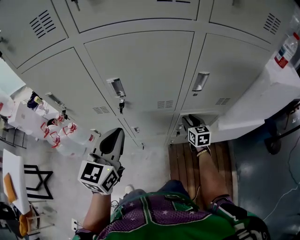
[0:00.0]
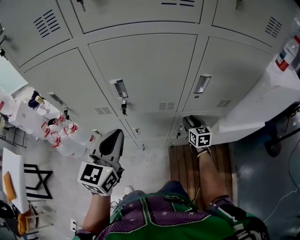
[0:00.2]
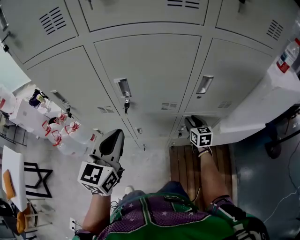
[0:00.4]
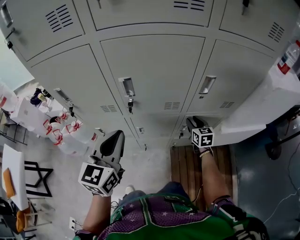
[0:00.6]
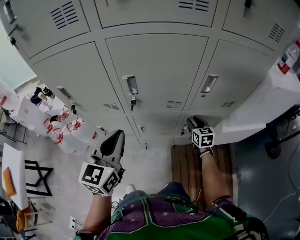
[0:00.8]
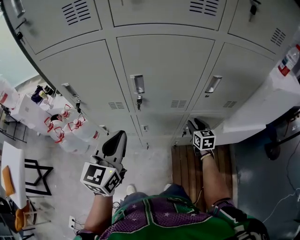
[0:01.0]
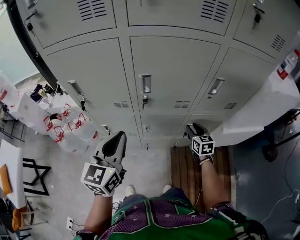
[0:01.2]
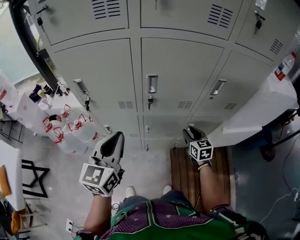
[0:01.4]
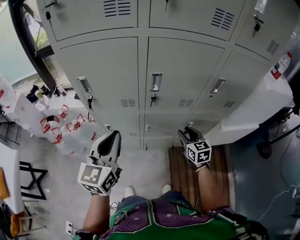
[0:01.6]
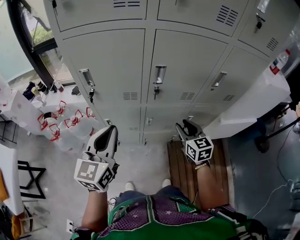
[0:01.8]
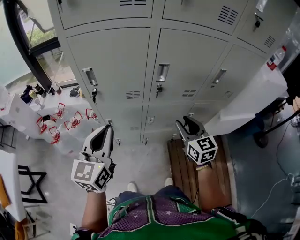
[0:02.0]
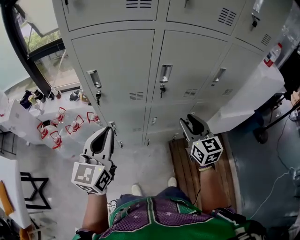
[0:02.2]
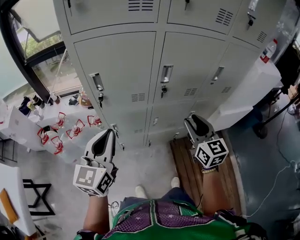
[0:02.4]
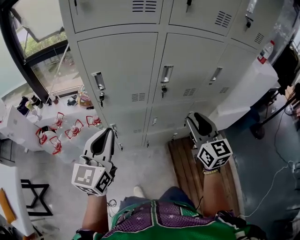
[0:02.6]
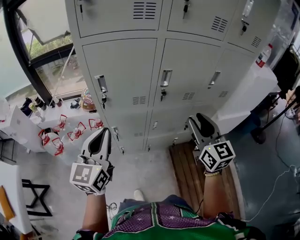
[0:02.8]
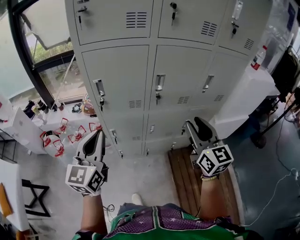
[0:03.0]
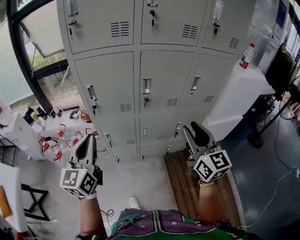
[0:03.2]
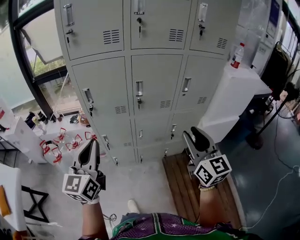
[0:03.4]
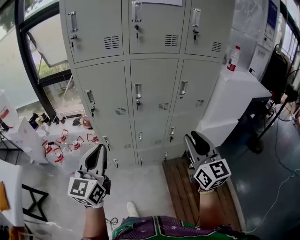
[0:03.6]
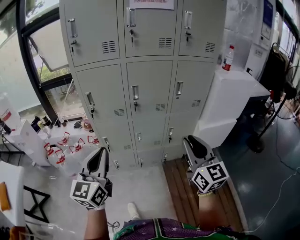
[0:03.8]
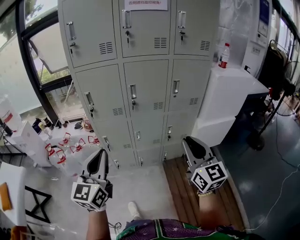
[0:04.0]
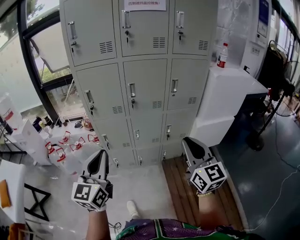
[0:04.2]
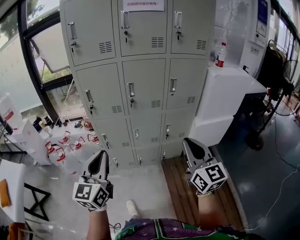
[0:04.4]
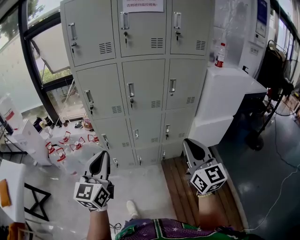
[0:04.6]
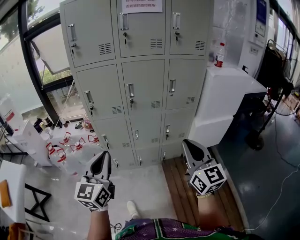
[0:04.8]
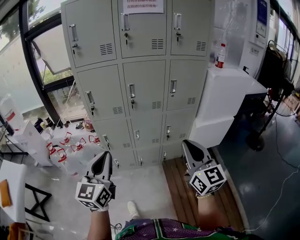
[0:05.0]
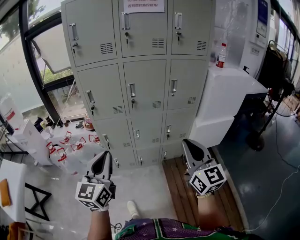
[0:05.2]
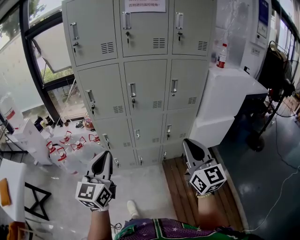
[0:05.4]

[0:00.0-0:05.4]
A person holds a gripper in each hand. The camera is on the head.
0:00.0 to 0:01.4: The grippers both shift to the left and backward by roughly 15 cm.
0:01.4 to 0:02.8: The left gripper moves to the left, about 15 cm, while the right gripper heads upward, to the left and backward, covering approximately 30 cm, and turns by approximately 30 degrees.
0:02.8 to 0:04.0: Both grippers move backward and to the right, roughly 25 cm.
0:04.0 to 0:05.4: The grippers make only small movements.

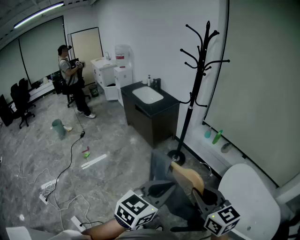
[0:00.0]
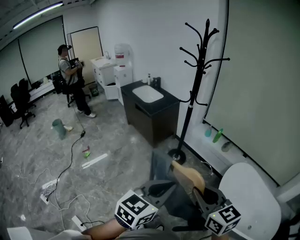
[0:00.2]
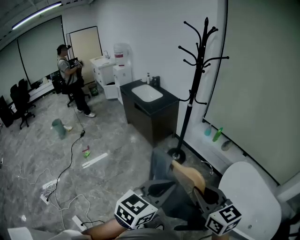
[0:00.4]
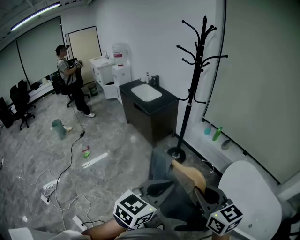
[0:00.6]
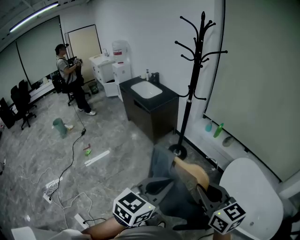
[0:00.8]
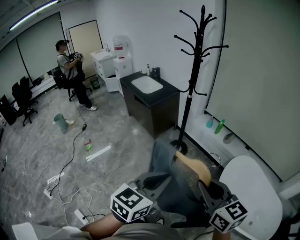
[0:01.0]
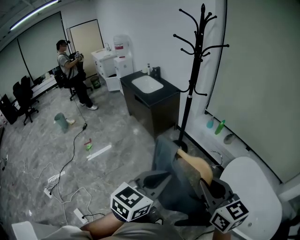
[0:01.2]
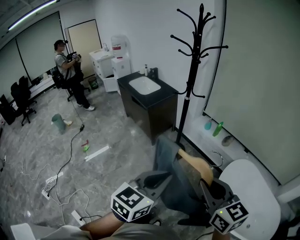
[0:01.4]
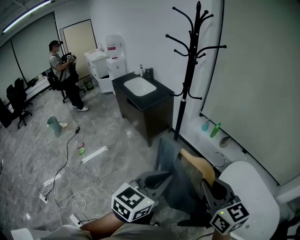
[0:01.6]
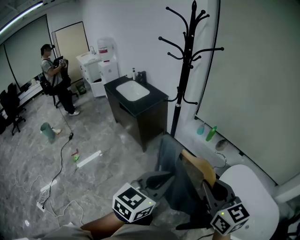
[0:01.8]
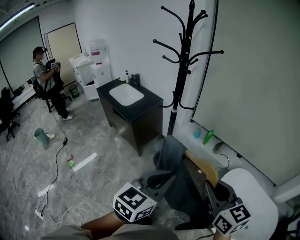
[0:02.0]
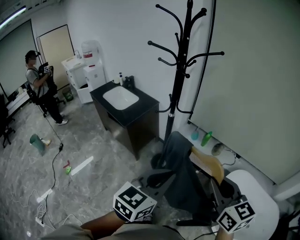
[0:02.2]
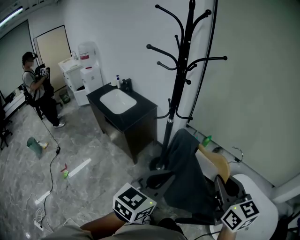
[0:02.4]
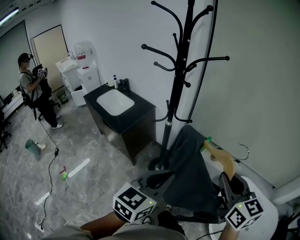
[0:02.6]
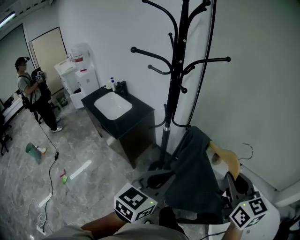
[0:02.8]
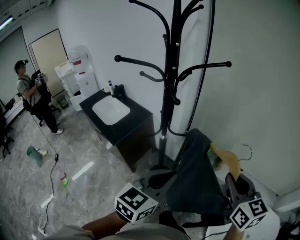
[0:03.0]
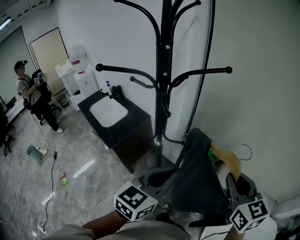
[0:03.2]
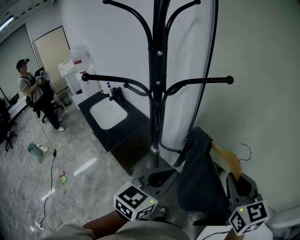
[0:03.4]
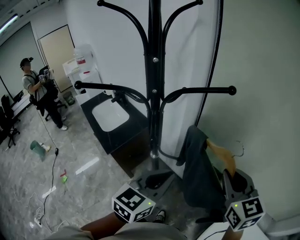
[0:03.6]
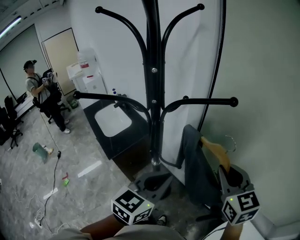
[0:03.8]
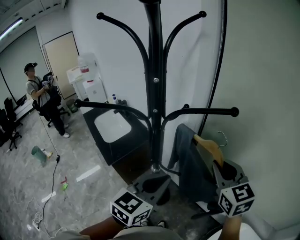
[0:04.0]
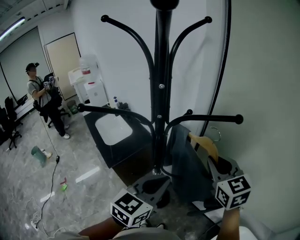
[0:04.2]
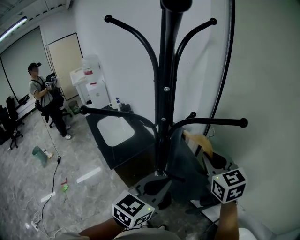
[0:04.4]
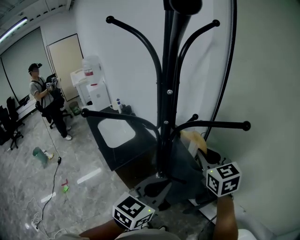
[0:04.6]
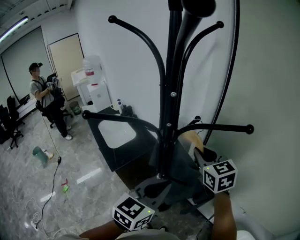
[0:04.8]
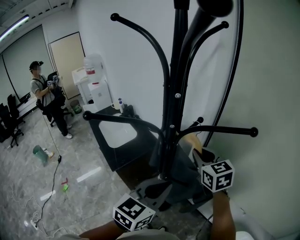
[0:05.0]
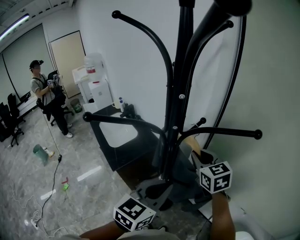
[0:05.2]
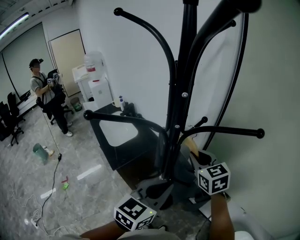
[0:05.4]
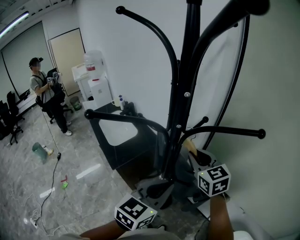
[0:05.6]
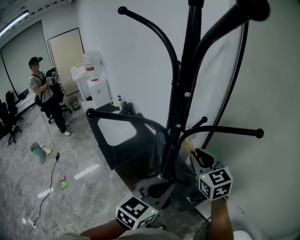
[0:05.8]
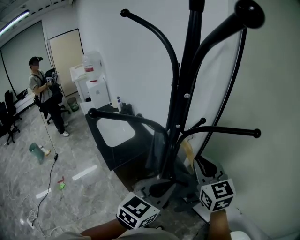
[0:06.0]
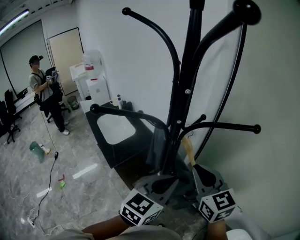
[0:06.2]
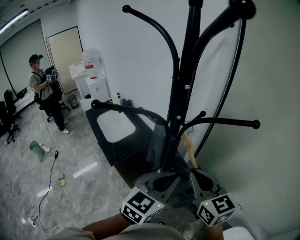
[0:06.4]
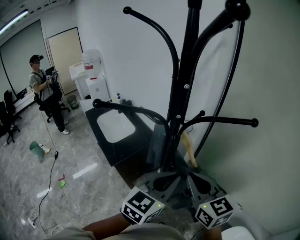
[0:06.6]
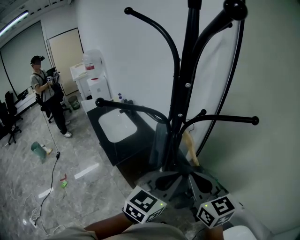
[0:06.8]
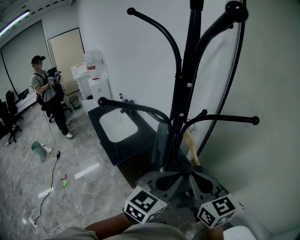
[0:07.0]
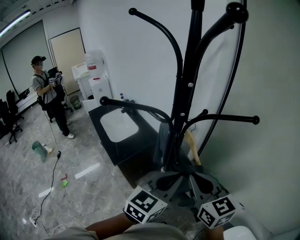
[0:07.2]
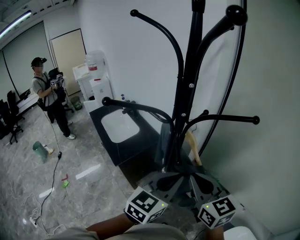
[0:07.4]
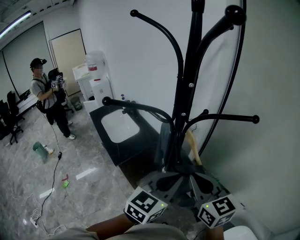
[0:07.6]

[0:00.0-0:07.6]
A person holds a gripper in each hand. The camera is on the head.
0:00.0 to 0:01.6: The grippers both shift forward and to the right by some 15 cm.
0:01.6 to 0:03.0: The two grippers travel together, forward, about 40 cm. The right gripper turns by about 20 degrees.
0:03.0 to 0:04.6: The left gripper heads forward, covering roughly 20 cm. Meanwhile the right gripper moves forward, roughly 35 cm, and changes its angle by about 20 degrees.
0:06.0 to 0:07.6: The right gripper heads backward, covering roughly 10 cm.

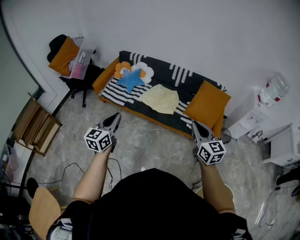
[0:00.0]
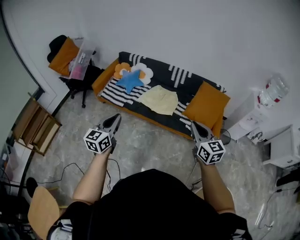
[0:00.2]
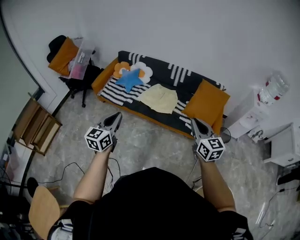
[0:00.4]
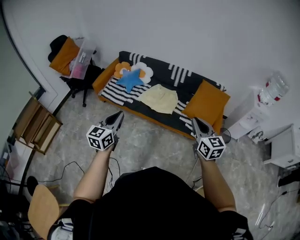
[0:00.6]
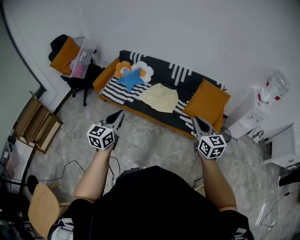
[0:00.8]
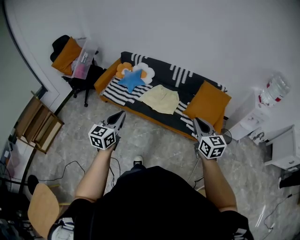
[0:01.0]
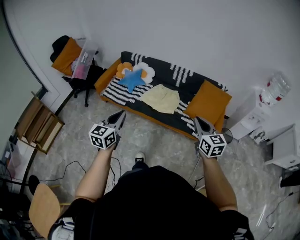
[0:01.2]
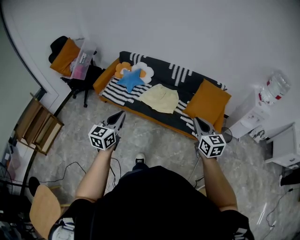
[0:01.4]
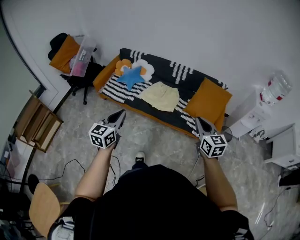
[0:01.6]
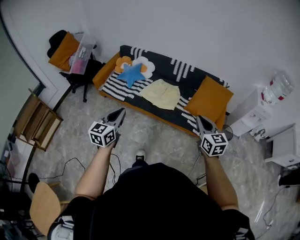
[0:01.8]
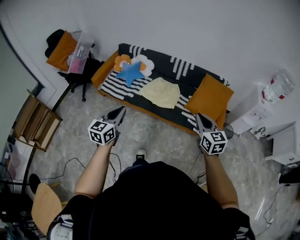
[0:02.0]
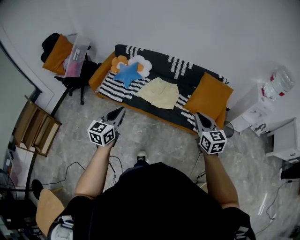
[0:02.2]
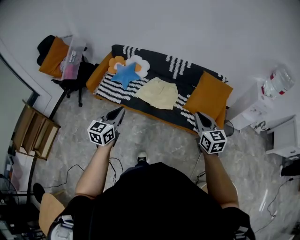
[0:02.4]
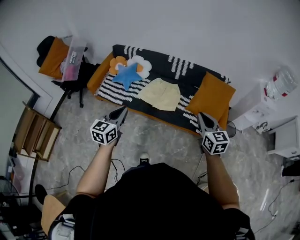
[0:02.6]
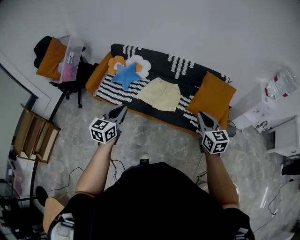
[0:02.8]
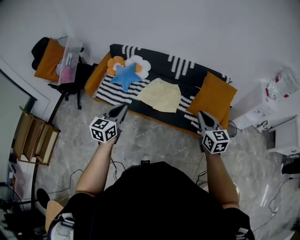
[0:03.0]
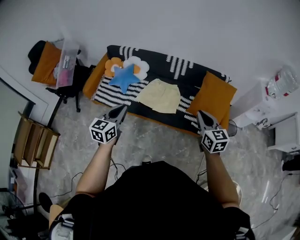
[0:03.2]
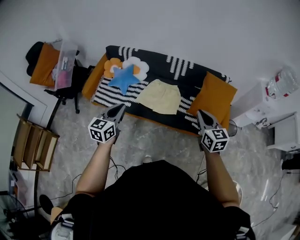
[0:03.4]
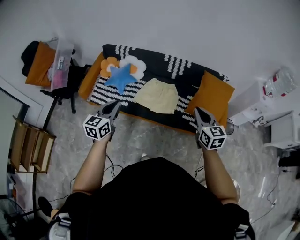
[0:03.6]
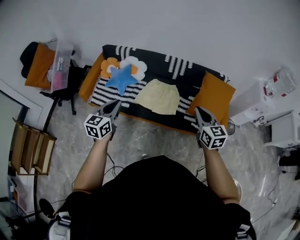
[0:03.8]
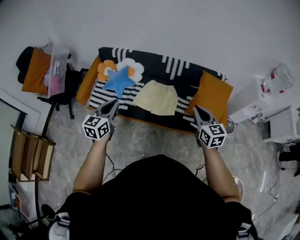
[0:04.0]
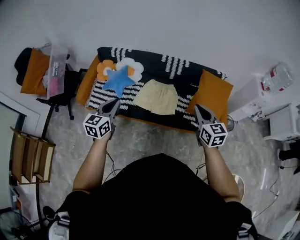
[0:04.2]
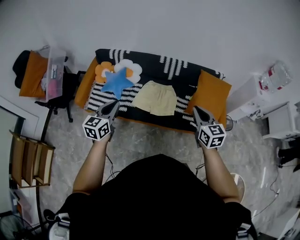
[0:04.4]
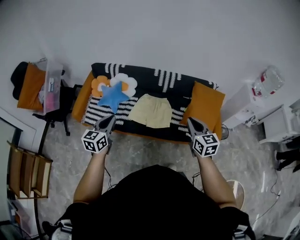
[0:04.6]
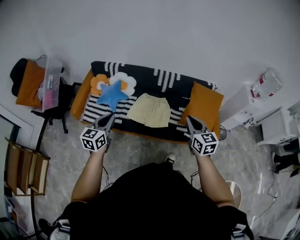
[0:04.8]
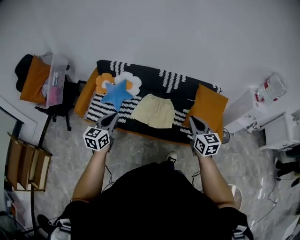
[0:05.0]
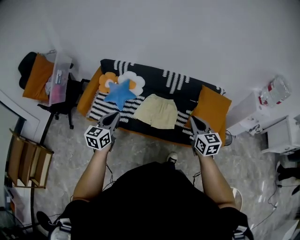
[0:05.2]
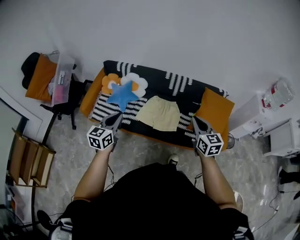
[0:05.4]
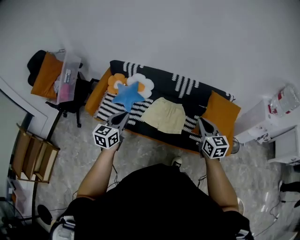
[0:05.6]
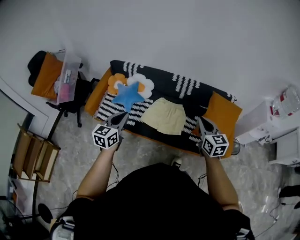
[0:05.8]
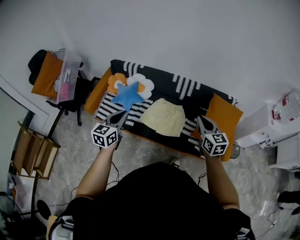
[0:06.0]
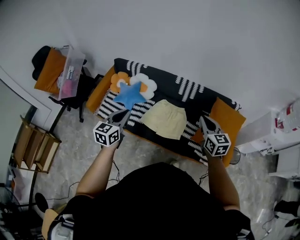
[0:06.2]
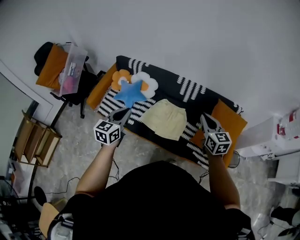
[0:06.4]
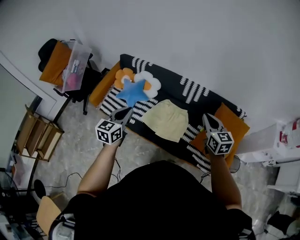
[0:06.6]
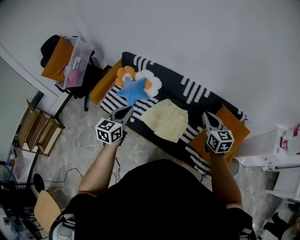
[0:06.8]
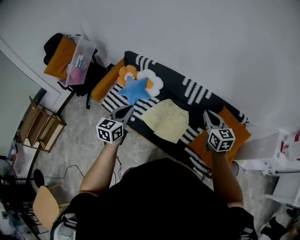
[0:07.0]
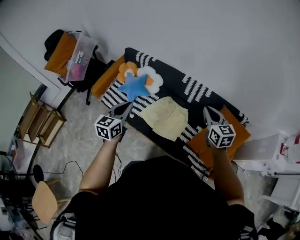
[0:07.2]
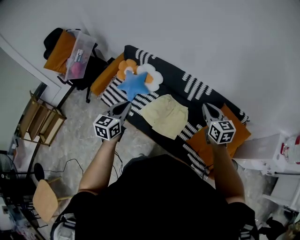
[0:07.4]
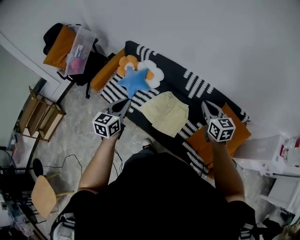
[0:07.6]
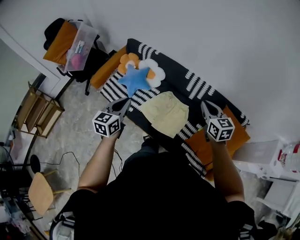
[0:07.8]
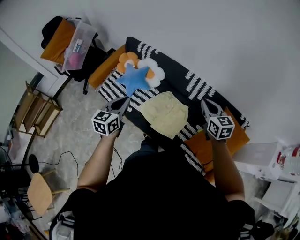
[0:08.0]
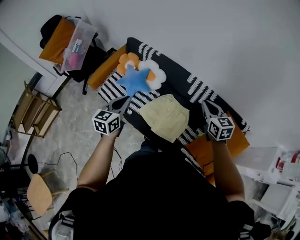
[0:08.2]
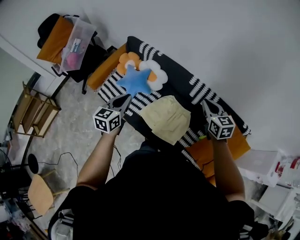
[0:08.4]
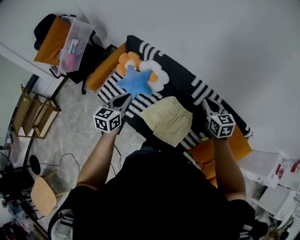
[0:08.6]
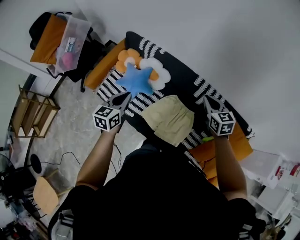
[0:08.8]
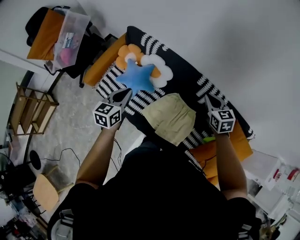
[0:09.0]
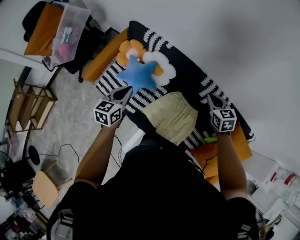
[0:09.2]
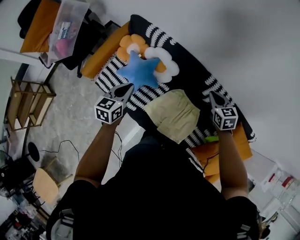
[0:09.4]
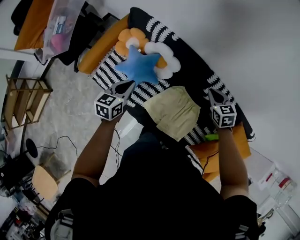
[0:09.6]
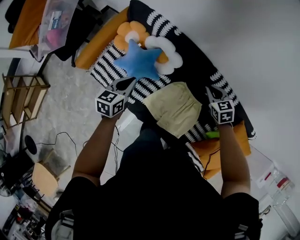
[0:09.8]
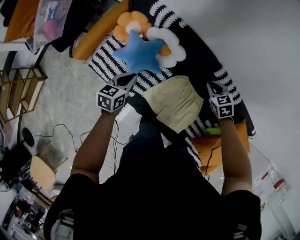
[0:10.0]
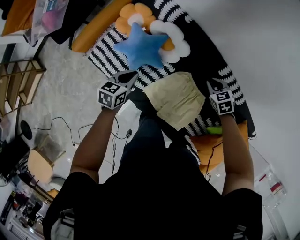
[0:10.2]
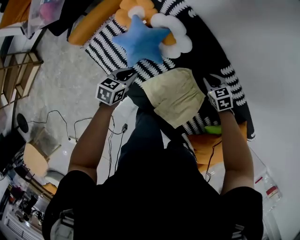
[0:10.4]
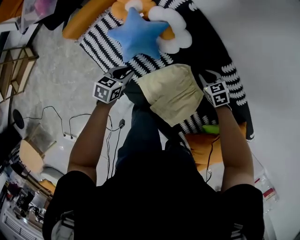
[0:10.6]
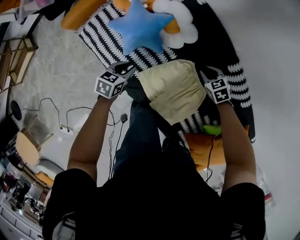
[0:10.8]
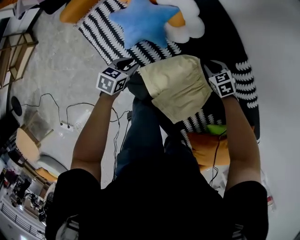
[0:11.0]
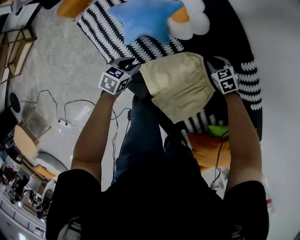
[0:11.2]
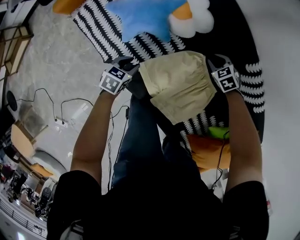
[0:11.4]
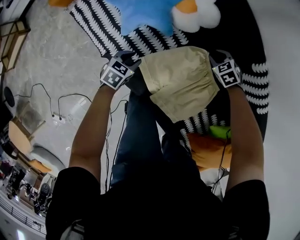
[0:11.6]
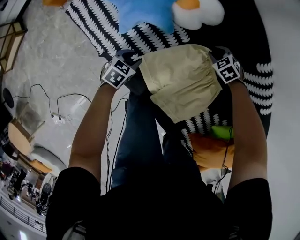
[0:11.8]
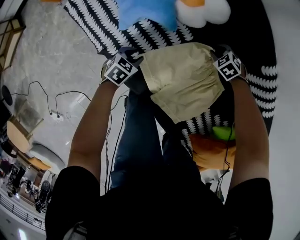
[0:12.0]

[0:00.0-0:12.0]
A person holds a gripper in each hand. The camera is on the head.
0:00.0 to 0:01.6: Both grippers travel together to the right, about 5 cm.
0:01.6 to 0:03.0: Both grippers move forward, roughly 20 cm.
0:03.0 to 0:04.4: The right gripper travels to the left and forward by approximately 10 cm. Meanwhile the left gripper is displaced forward and to the left by approximately 15 cm.
0:04.4 to 0:06.0: The right gripper travels forward by roughly 10 cm. The left gripper is displaced forward by about 5 cm.
0:06.0 to 0:07.6: The right gripper is displaced forward and to the right by some 20 cm. Meanwhile the left gripper shifts about 15 cm to the right and forward.
0:07.6 to 0:09.0: The grippers both shift forward and downward by roughly 30 cm.
0:09.0 to 0:10.4: Both grippers travel together downward, roughly 25 cm. The right gripper turns by some 40 degrees. The left gripper rotates some 20 degrees.
0:10.4 to 0:12.0: The two grippers go about 30 cm downward. The right gripper swivels about 30 degrees.
